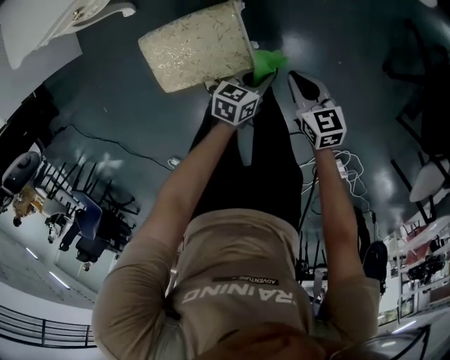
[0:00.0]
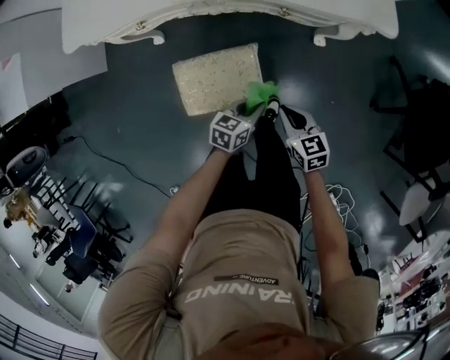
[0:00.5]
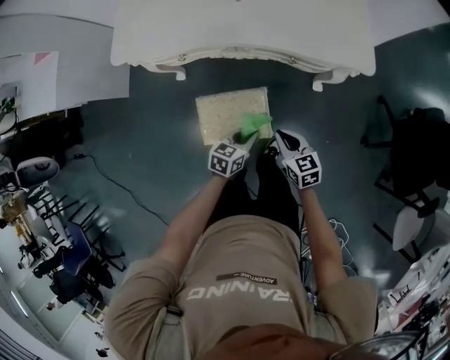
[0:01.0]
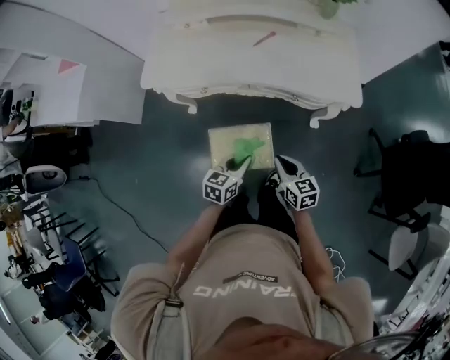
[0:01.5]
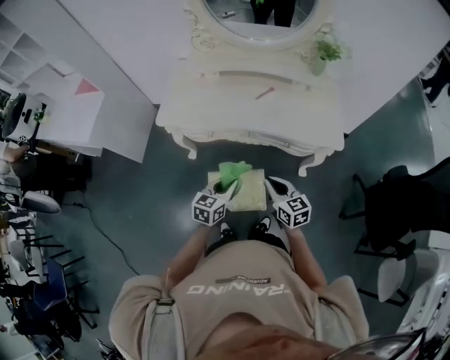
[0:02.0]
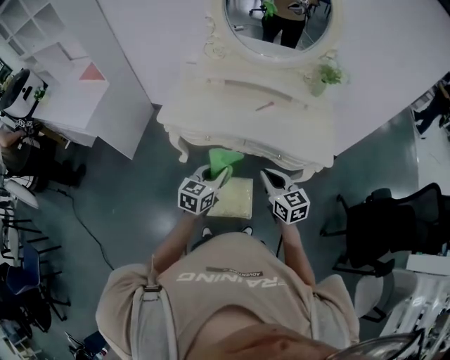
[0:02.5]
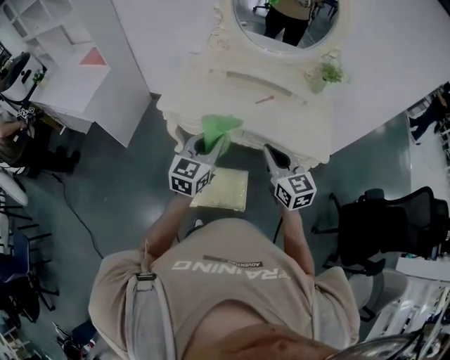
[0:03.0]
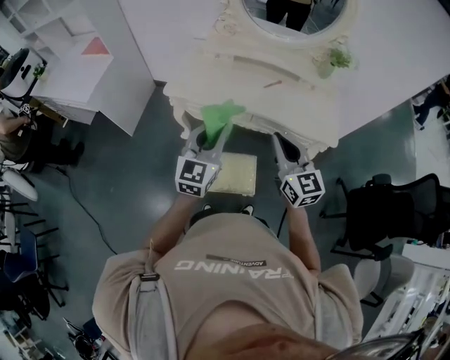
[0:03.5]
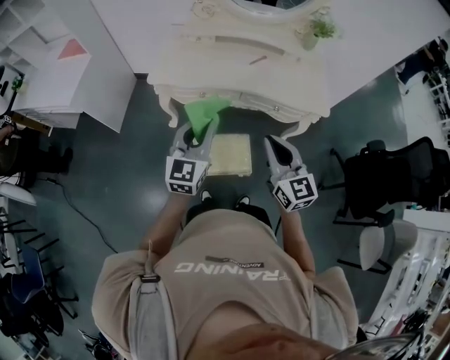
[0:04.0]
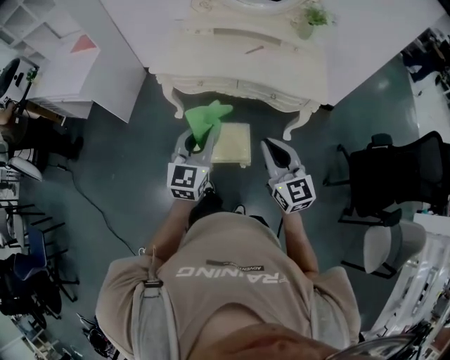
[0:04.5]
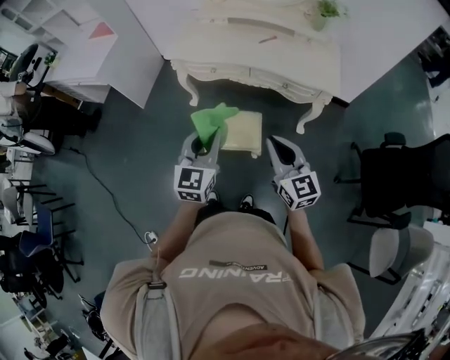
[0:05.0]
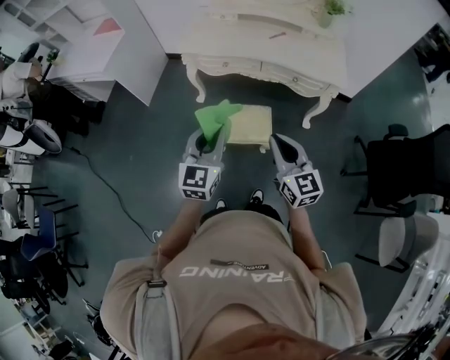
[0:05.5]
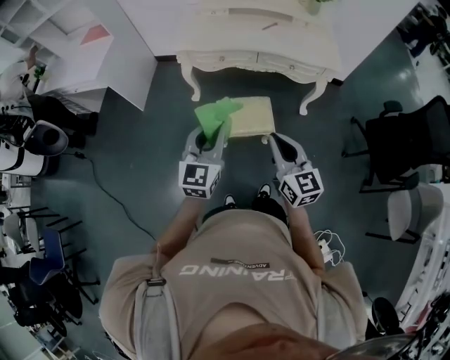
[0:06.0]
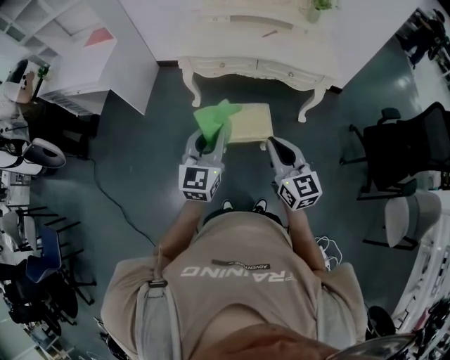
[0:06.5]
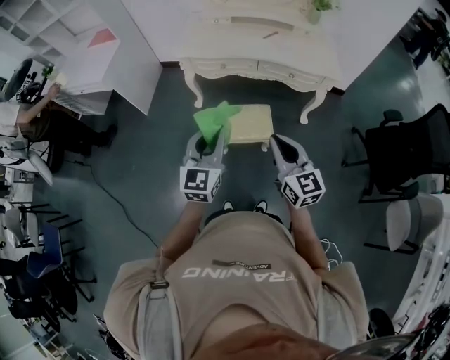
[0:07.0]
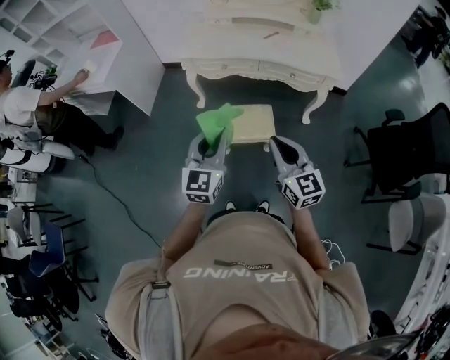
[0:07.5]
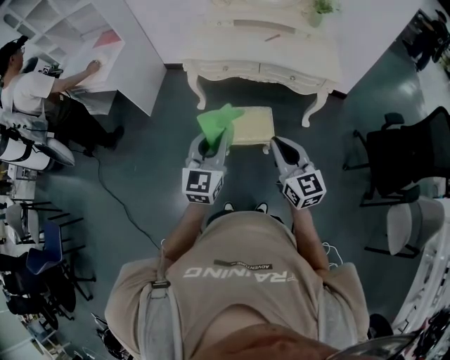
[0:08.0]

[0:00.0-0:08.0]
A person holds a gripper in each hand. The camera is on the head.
0:00.0 to 0:02.0: Both grippers move upward and to the left, approximately 50 cm. The left gripper changes its angle by roughly 30 degrees. Meanwhile the right gripper rotates roughly 20 degrees.
0:02.0 to 0:04.0: The right gripper moves upward, backward and to the left, some 20 cm, and rotates roughly 20 degrees, while the left gripper heads upward and to the left, covering some 20 cm, and swivels roughly 30 degrees.
0:04.0 to 0:06.0: The grippers both shift backward by roughly 25 cm.
0:06.0 to 0:08.0: The left gripper changes place by roughly 5 cm.

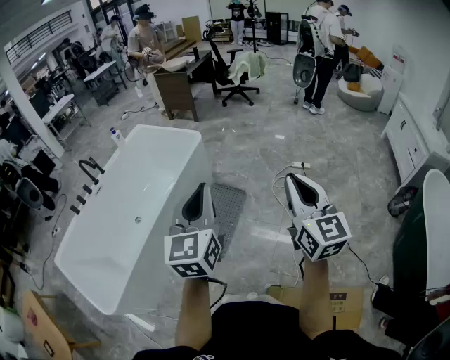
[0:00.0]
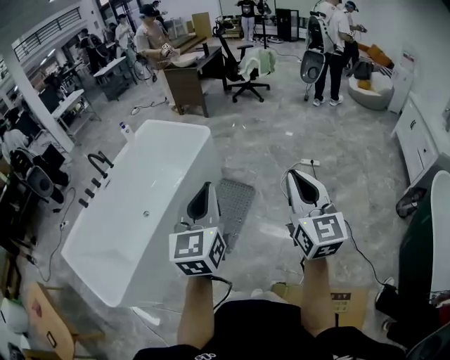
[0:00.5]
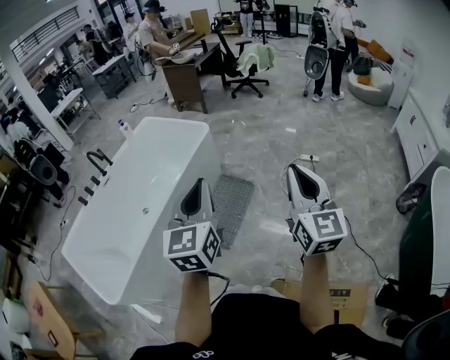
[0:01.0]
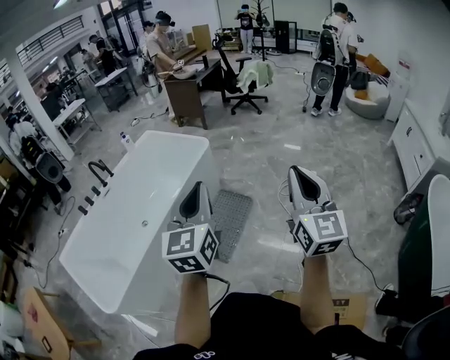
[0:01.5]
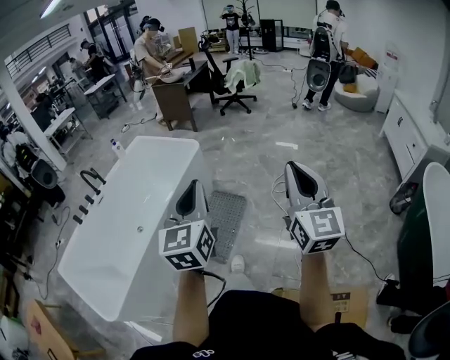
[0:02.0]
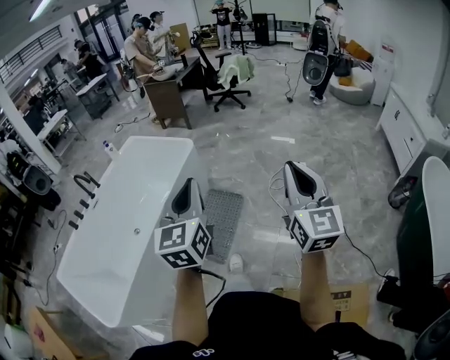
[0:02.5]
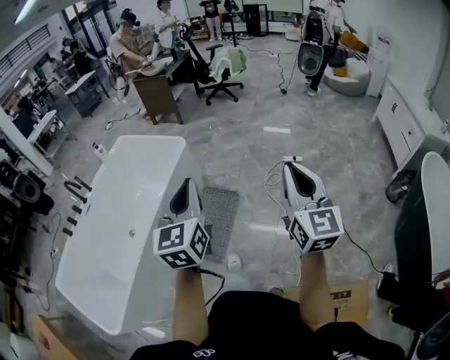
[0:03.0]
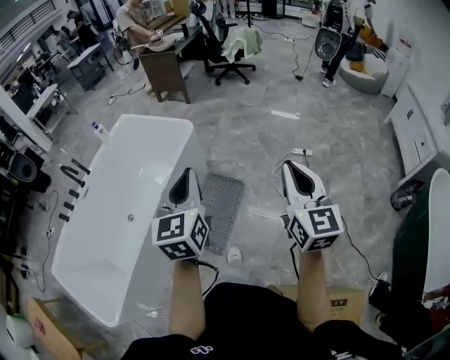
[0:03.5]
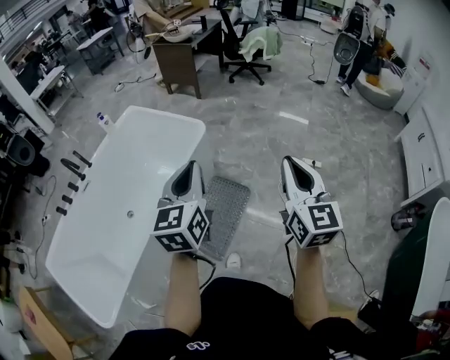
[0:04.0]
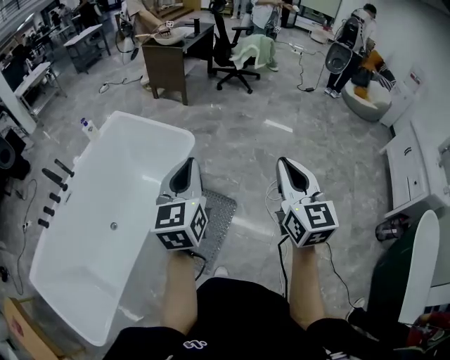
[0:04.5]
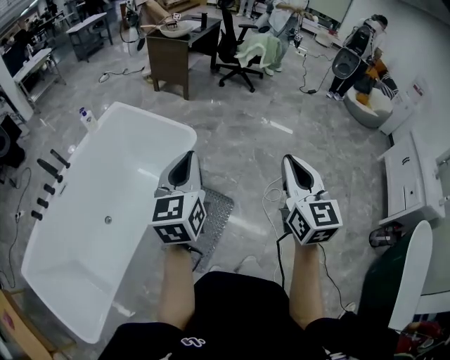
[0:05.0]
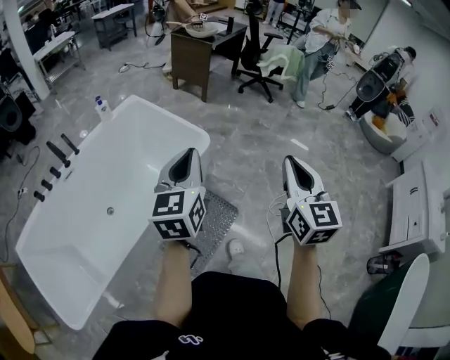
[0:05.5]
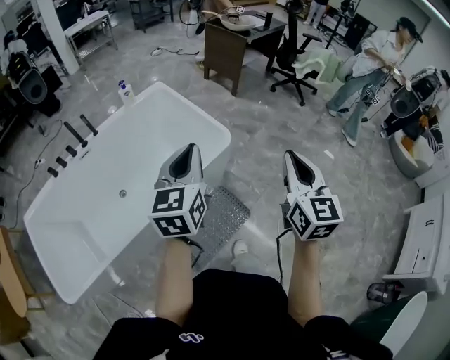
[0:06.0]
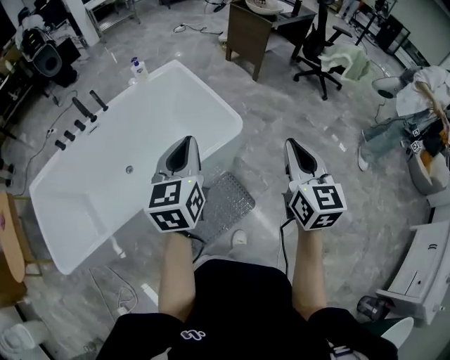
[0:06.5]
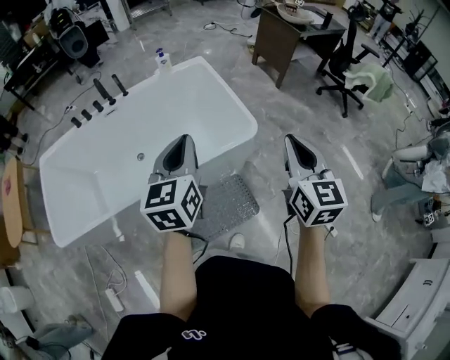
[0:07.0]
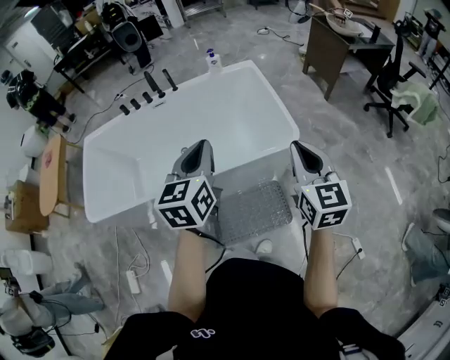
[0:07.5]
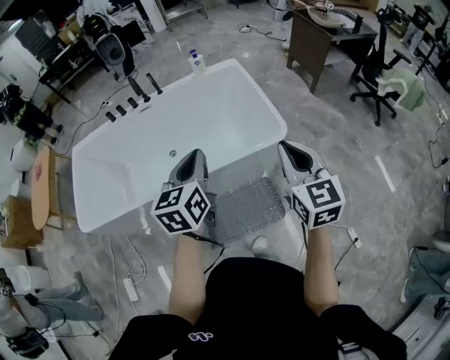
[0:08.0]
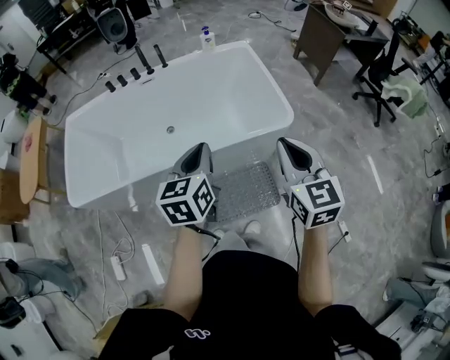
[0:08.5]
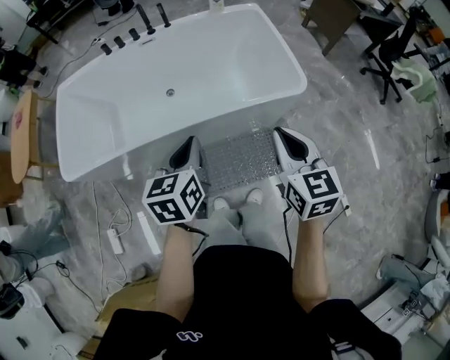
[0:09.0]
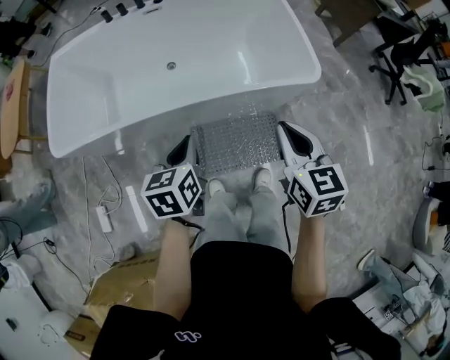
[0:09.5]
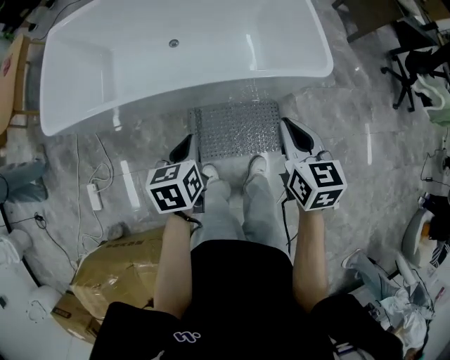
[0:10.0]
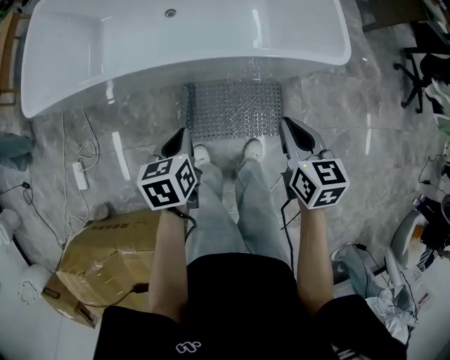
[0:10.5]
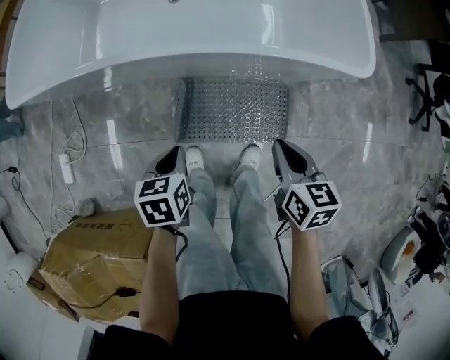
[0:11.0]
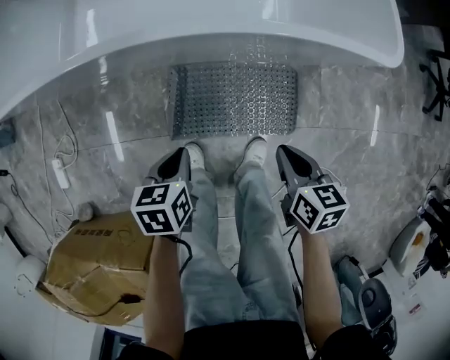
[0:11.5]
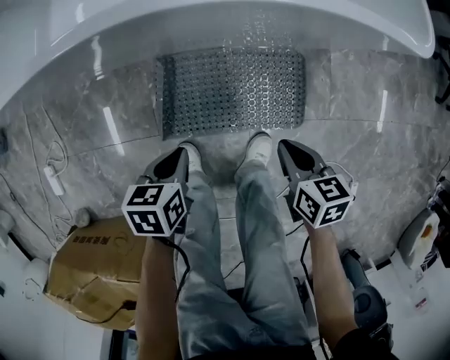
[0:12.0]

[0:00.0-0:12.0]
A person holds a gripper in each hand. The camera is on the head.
0:00.0 to 0:02.0: There are only small adjustments of the grippers.
0:02.0 to 0:04.0: The grippers both shift forward by about 30 cm.
0:04.0 to 0:06.0: The left gripper travels forward and to the left by roughly 20 cm. The right gripper travels forward by some 25 cm.
0:06.0 to 0:08.0: The left gripper goes roughly 5 cm downward, and swivels some 30 degrees; the right gripper ends up approximately 10 cm from where it was, and swivels approximately 40 degrees.
0:08.0 to 0:10.0: The left gripper heads downward, to the left and backward, covering approximately 30 cm, and changes its angle by about 30 degrees. Meanwhile the right gripper is displaced downward and to the left by roughly 25 cm, and swivels approximately 30 degrees.
0:10.0 to 0:12.0: The grippers both shift downward by roughly 40 cm. The right gripper turns by some 30 degrees. The left gripper rotates about 20 degrees.

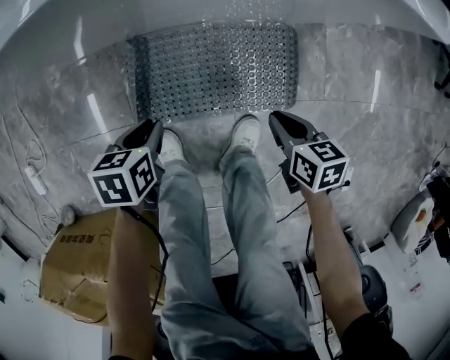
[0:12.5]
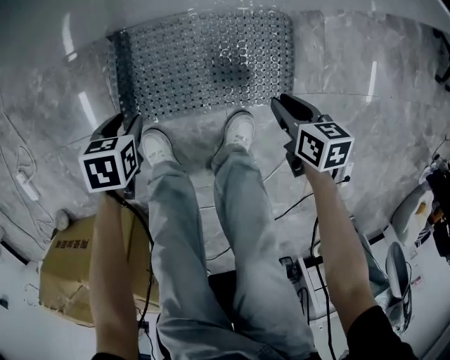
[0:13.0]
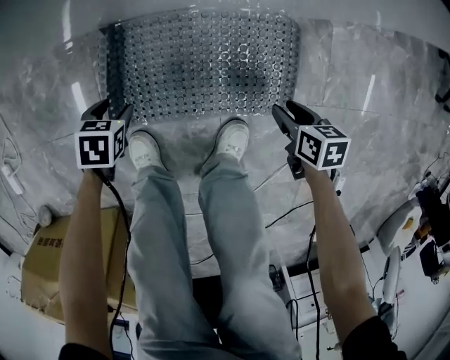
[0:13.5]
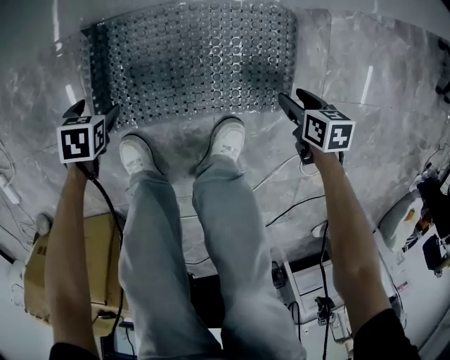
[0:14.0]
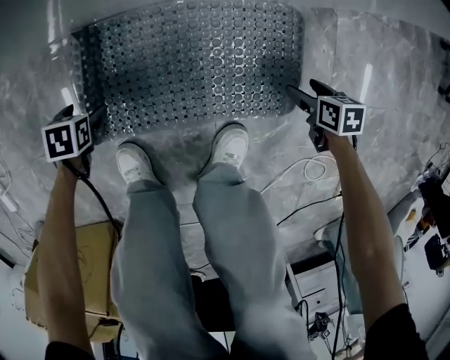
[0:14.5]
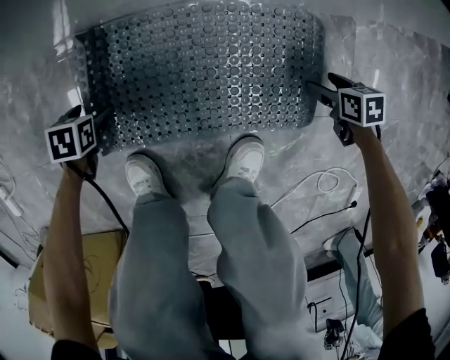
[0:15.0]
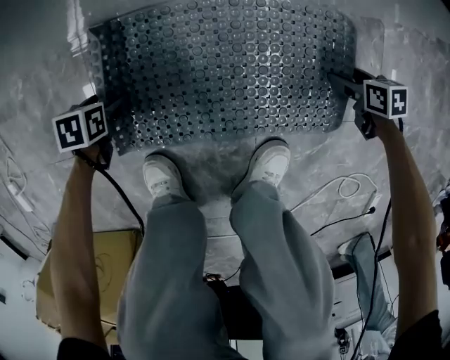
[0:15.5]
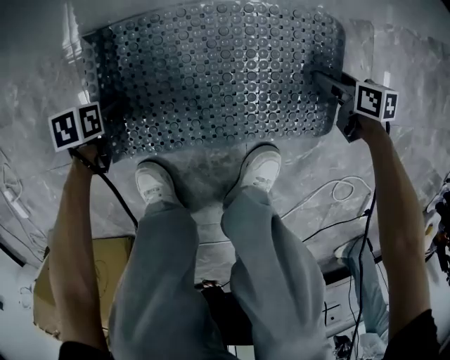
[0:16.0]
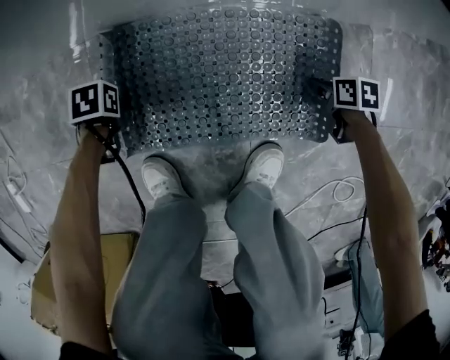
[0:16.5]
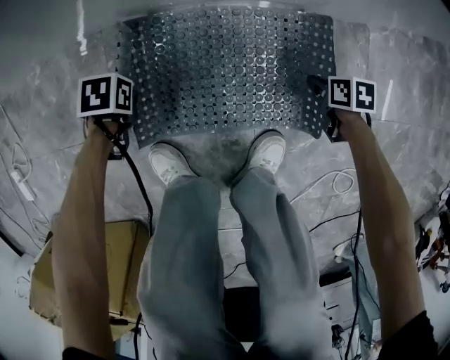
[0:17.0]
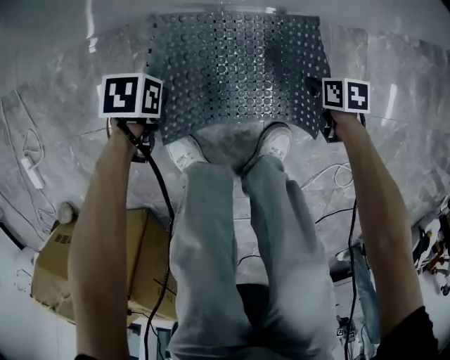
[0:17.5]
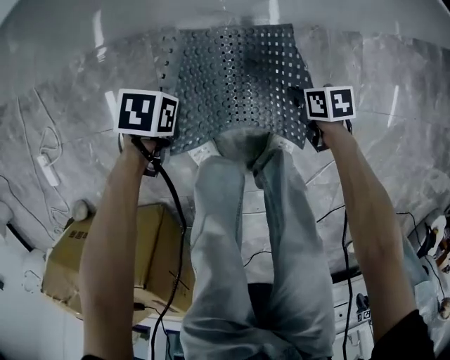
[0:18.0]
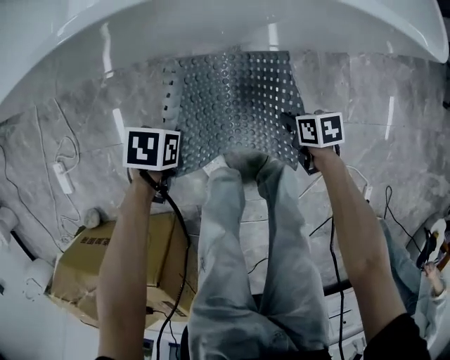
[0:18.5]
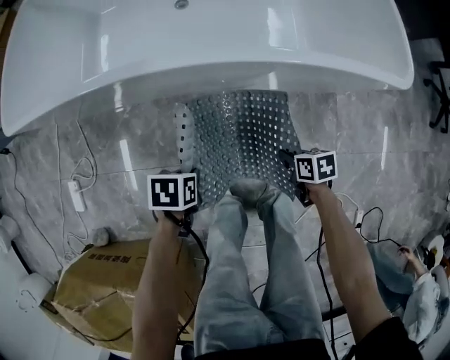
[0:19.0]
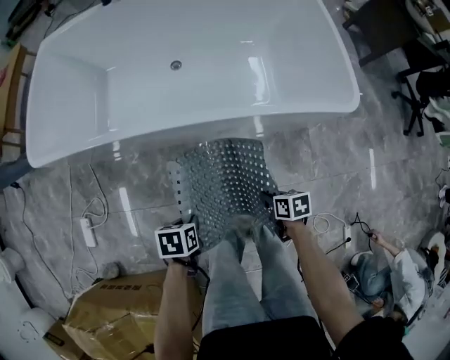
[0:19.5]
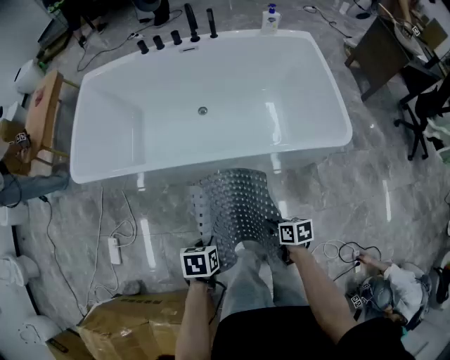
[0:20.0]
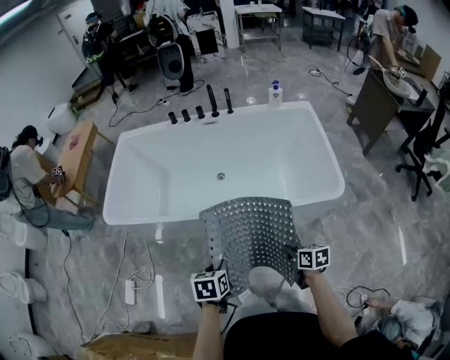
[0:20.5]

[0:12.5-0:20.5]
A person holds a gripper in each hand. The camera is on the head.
0:12.5 to 0:14.5: The two grippers go about 25 cm downward. The right gripper opens its fingers; the left gripper rotates some 20 degrees, and opens up.
0:14.5 to 0:16.5: Both grippers travel together downward, some 5 cm. The left gripper closes, while the right gripper closes its fingers.
0:16.5 to 0:18.5: The grippers both shift upward by about 30 cm.
0:18.5 to 0:20.5: Both grippers travel together upward, roughly 50 cm. The left gripper rotates approximately 40 degrees. Meanwhile the right gripper turns by about 30 degrees.
